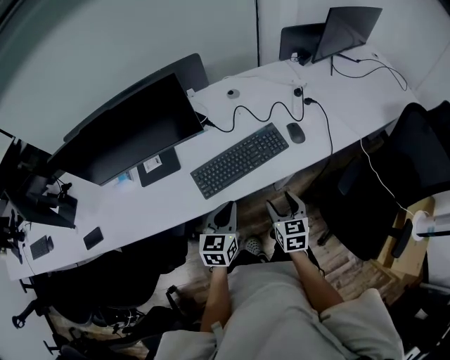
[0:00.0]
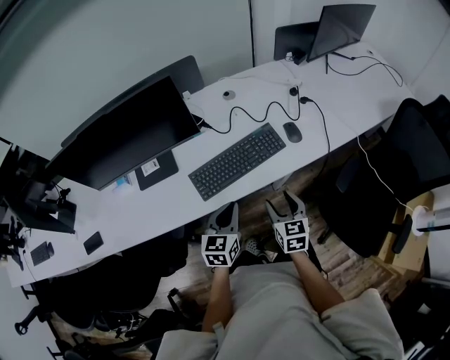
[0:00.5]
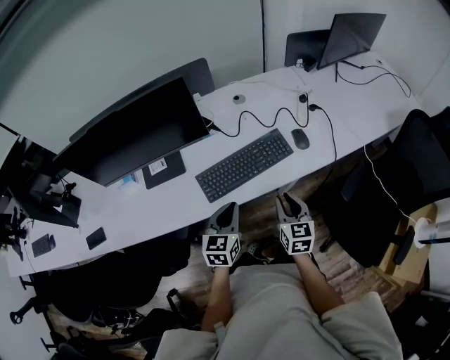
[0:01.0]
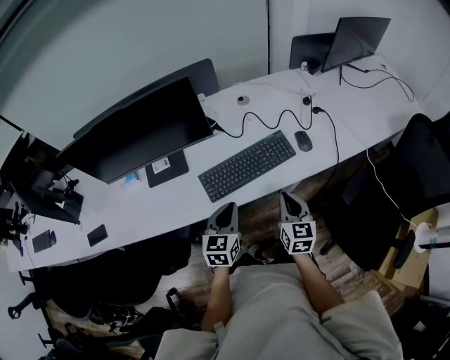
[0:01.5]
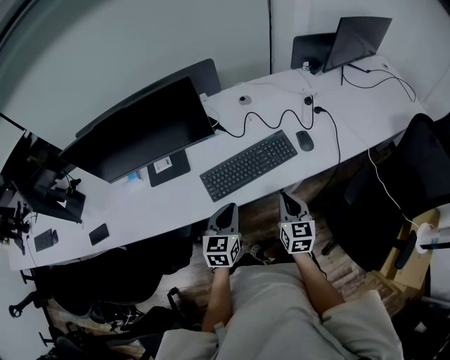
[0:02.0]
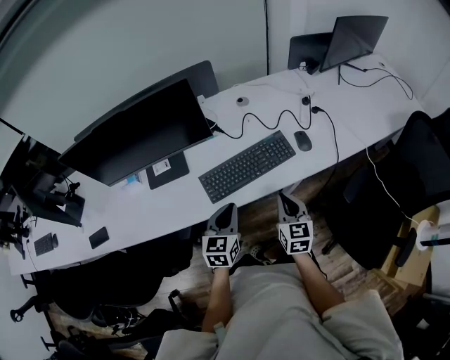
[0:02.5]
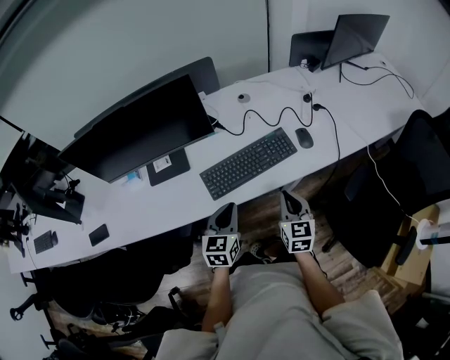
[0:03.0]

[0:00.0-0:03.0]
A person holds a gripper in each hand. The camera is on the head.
0:00.0 to 0:01.5: The right gripper closes.
0:01.5 to 0:03.0: The grippers move only a little.

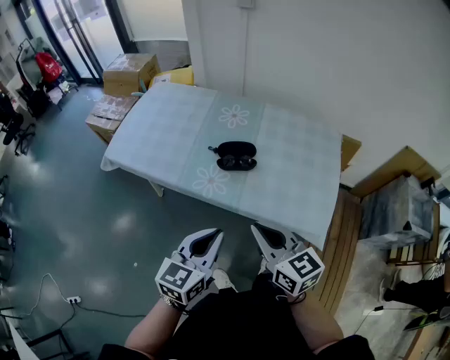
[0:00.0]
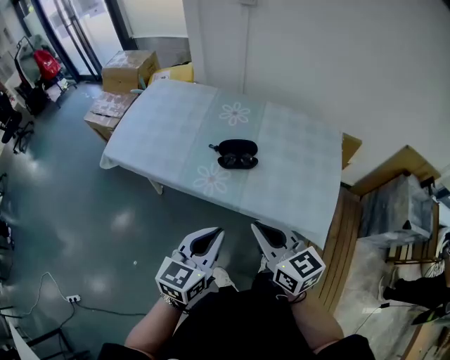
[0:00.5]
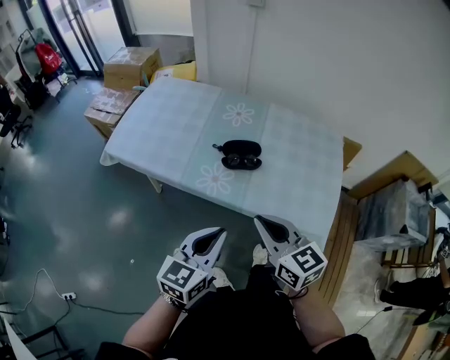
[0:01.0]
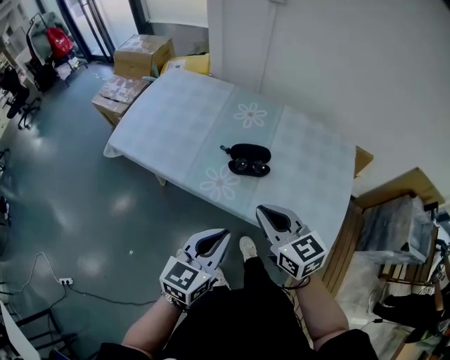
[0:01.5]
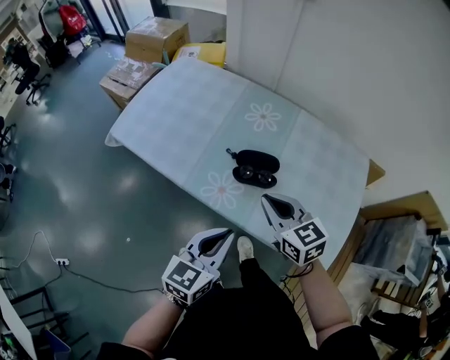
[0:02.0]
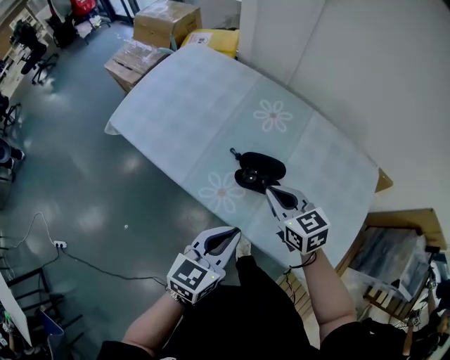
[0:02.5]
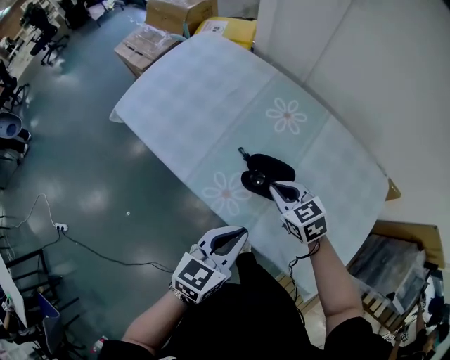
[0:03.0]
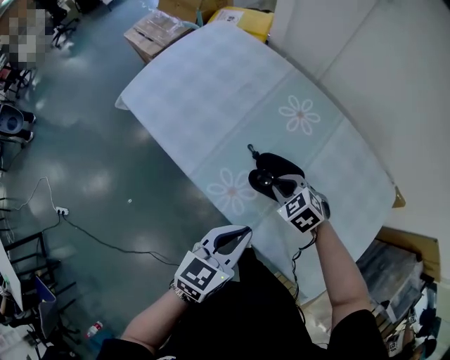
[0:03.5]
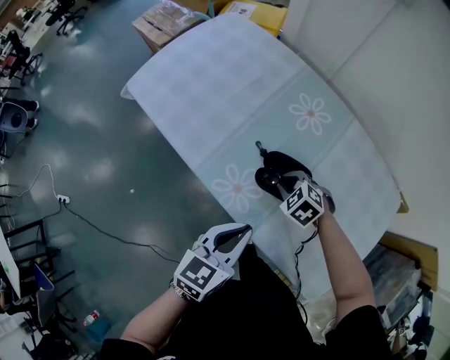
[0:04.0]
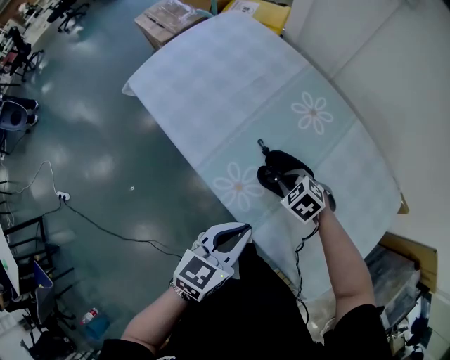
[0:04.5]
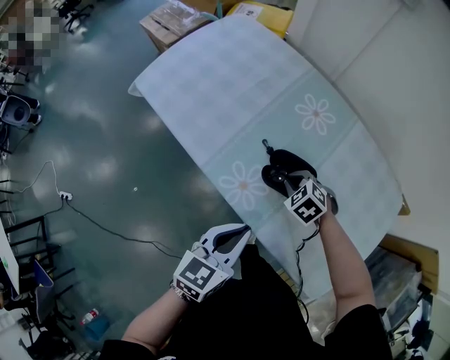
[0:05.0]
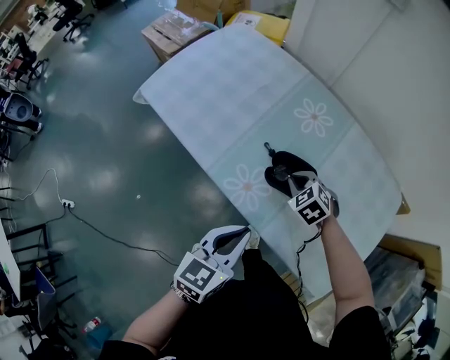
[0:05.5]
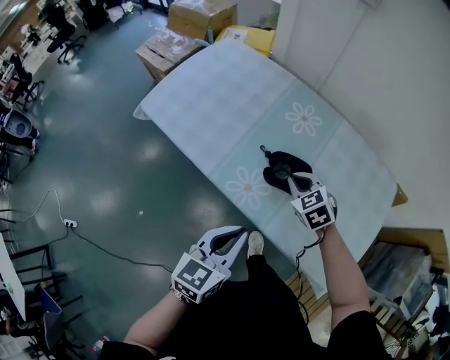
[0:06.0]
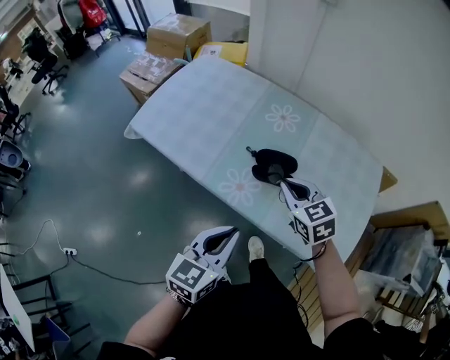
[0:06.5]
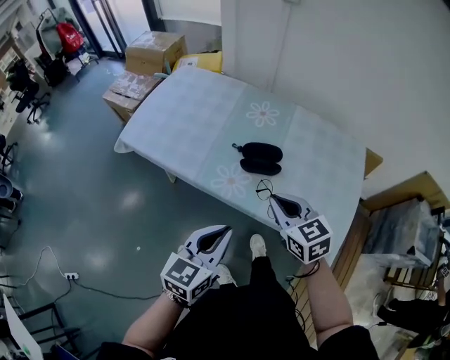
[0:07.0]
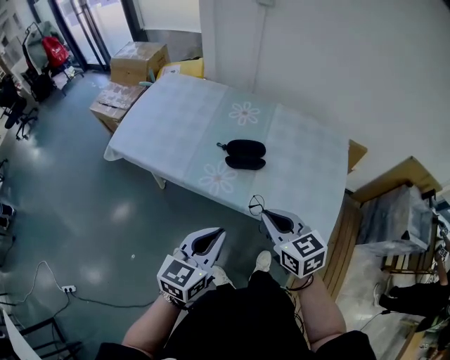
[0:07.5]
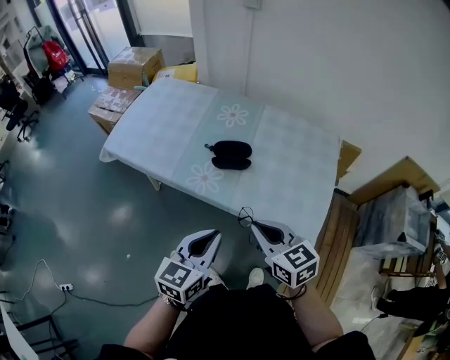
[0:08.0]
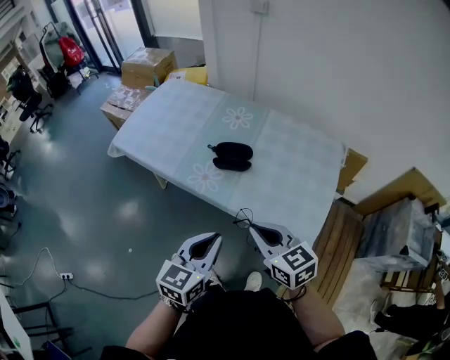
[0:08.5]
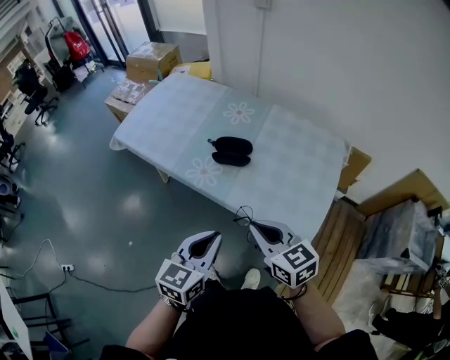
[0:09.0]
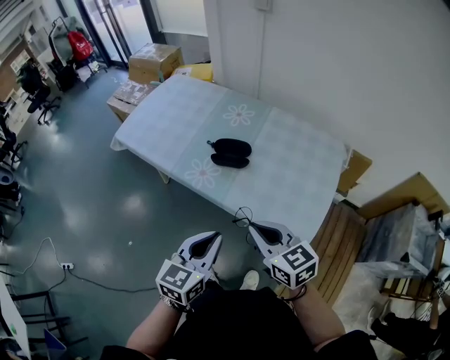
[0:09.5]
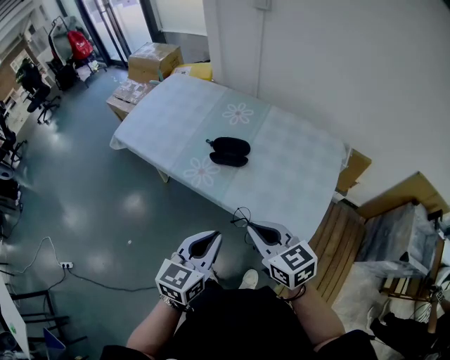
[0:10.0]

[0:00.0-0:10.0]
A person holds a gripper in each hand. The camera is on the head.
0:00.0 to 0:02.0: The right gripper shifts approximately 20 cm forward; the left gripper goes approximately 10 cm forward.
0:02.0 to 0:04.0: The right gripper shifts approximately 25 cm downward and forward, and tilts its fingers some 40 degrees downward; the left gripper heads forward and downward, covering about 10 cm.
0:04.0 to 0:06.0: The right gripper travels upward by roughly 10 cm, and changes its angle by some 30 degrees. Meanwhile the left gripper is displaced to the left by some 5 cm.
0:06.0 to 0:08.0: The left gripper moves backward, some 15 cm, while the right gripper goes roughly 30 cm backward and upward, and swivels approximately 40 degrees.
0:08.0 to 0:10.0: The left gripper moves to the right, approximately 5 cm; the right gripper changes place by about 5 cm.

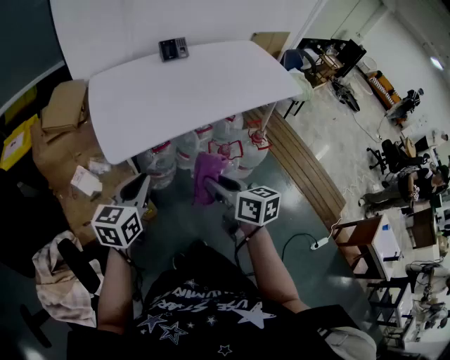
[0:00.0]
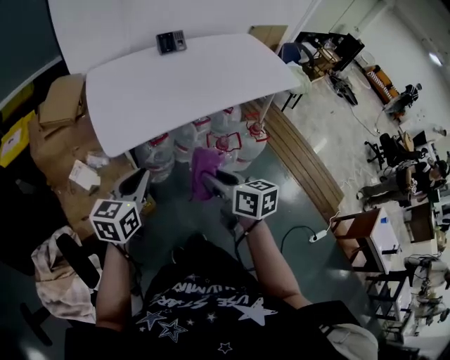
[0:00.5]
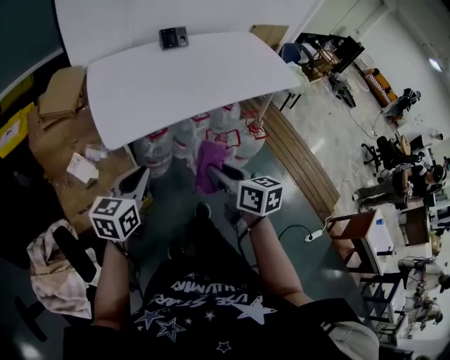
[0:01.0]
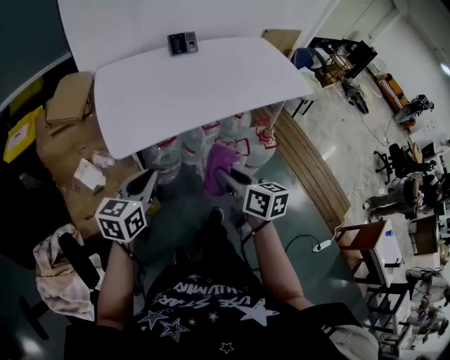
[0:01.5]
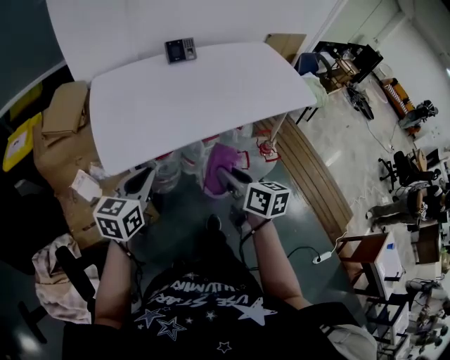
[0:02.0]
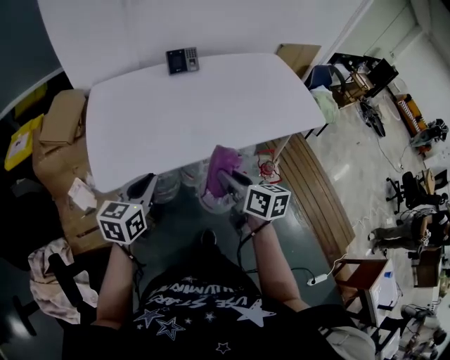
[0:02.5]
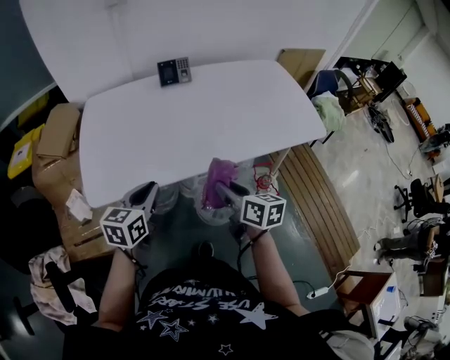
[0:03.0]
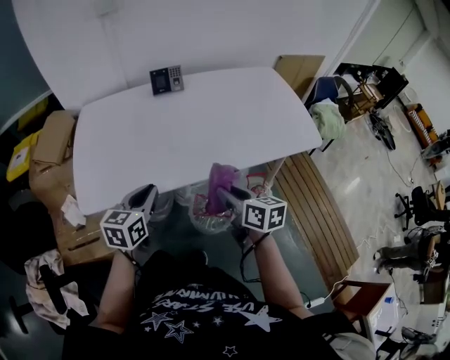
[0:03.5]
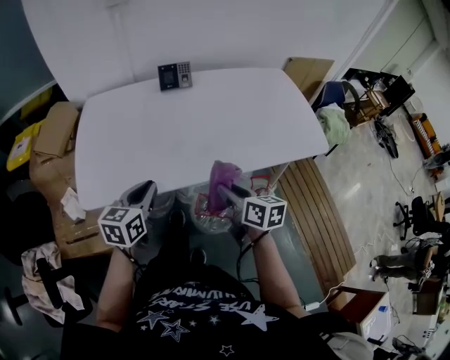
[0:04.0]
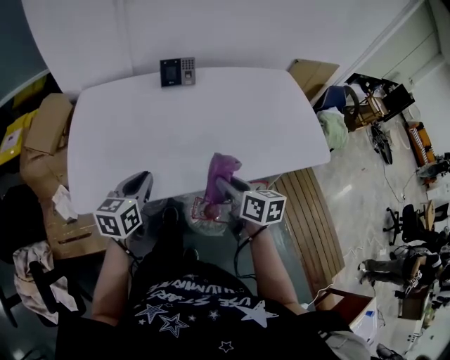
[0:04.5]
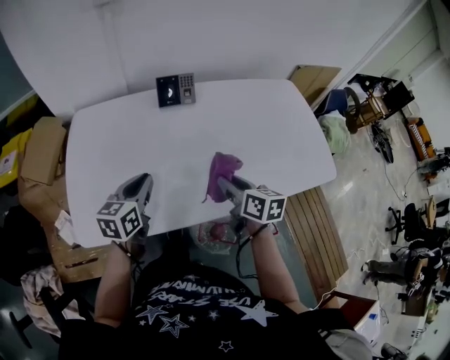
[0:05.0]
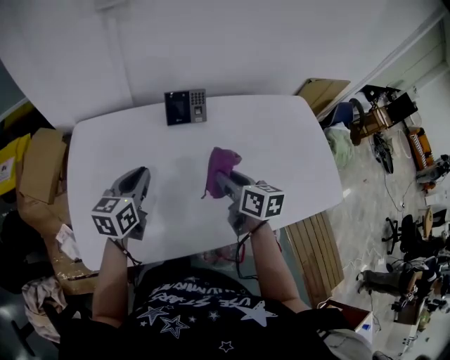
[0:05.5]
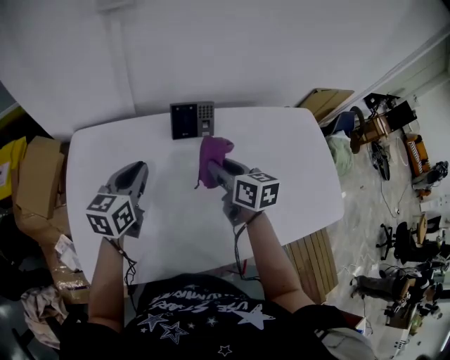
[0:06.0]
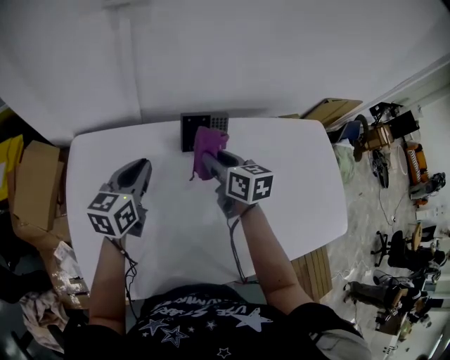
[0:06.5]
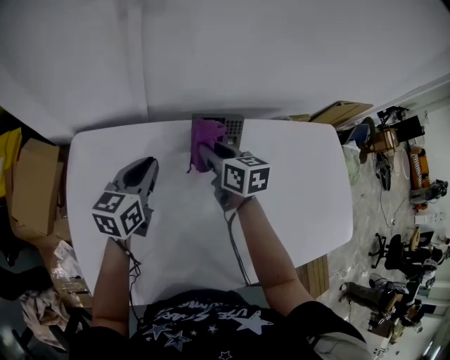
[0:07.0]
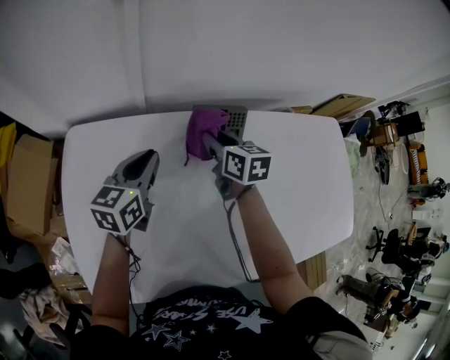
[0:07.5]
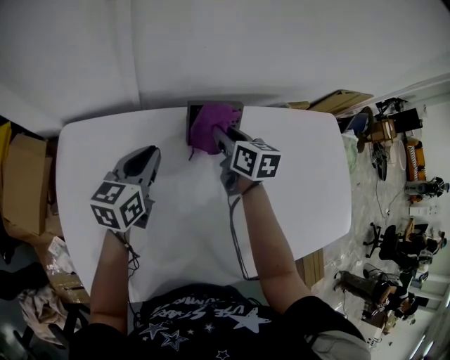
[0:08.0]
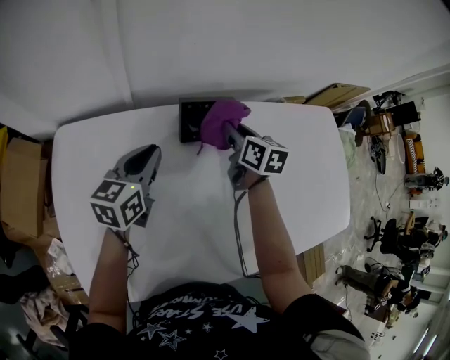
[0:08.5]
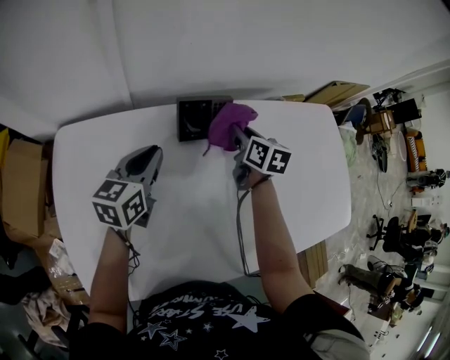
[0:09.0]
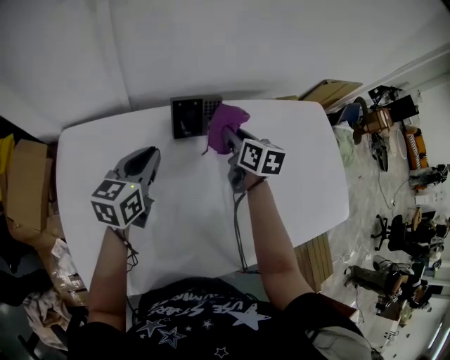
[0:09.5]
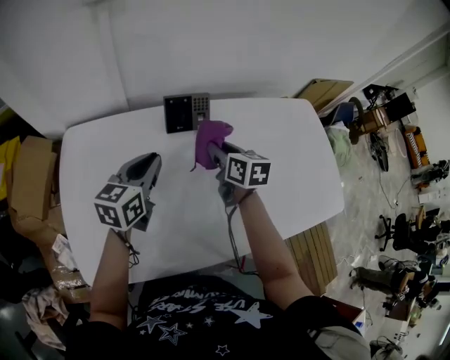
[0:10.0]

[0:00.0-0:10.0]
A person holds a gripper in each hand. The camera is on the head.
0:00.0 to 0:02.0: The right gripper is displaced forward and to the right by about 15 cm; the left gripper travels forward by approximately 10 cm.
0:02.0 to 0:04.0: The right gripper moves forward and to the right, roughly 25 cm; the left gripper moves to the right and forward, roughly 20 cm.
0:04.0 to 0:06.0: Both grippers move forward, about 35 cm.
0:06.0 to 0:08.0: Both grippers travel together forward and downward, some 15 cm.
0:08.0 to 0:10.0: The left gripper shifts approximately 15 cm backward, to the right and upward; the right gripper moves backward and to the right, approximately 15 cm.

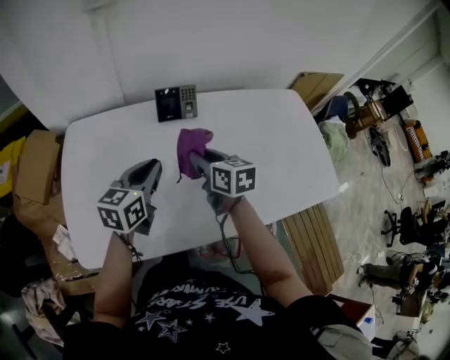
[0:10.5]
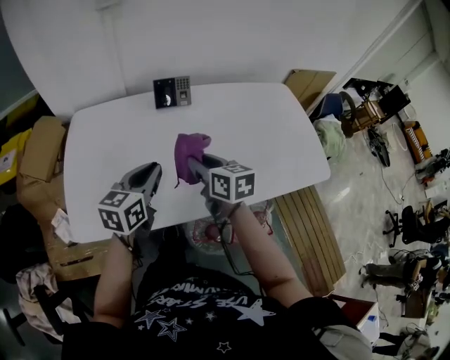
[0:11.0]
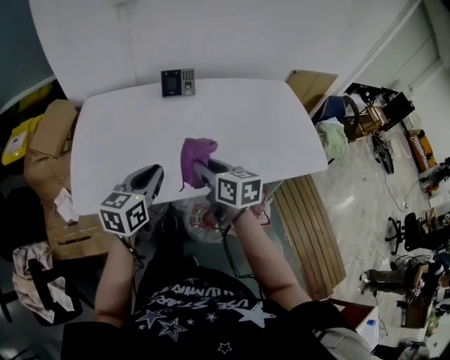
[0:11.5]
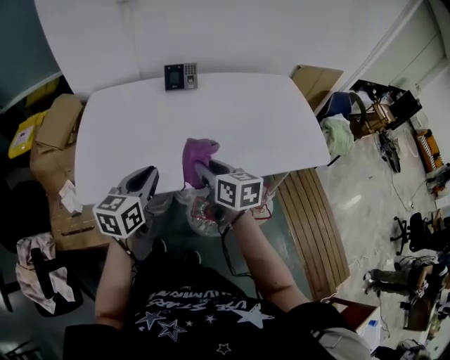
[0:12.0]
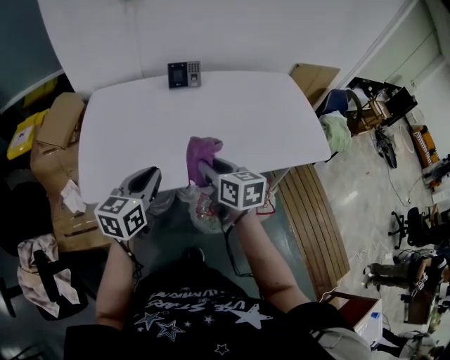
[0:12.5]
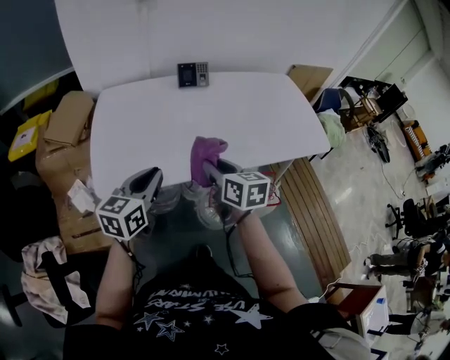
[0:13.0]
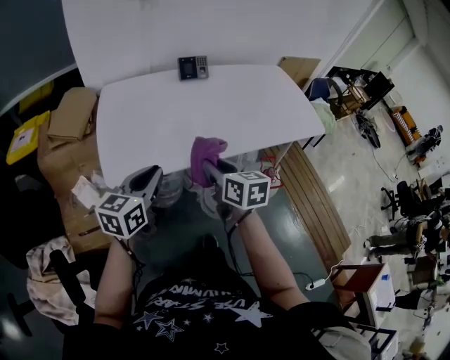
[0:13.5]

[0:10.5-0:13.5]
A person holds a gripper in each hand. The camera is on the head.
0:10.5 to 0:12.0: The two grippers go about 25 cm backward.
0:12.0 to 0:13.5: Both grippers travel together to the left and backward, about 20 cm.
